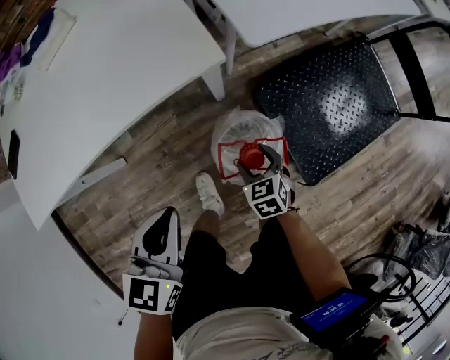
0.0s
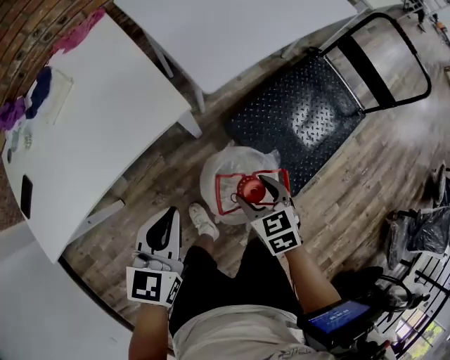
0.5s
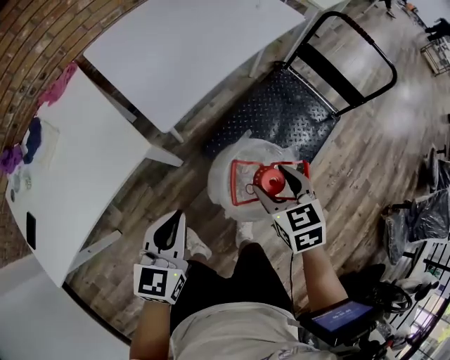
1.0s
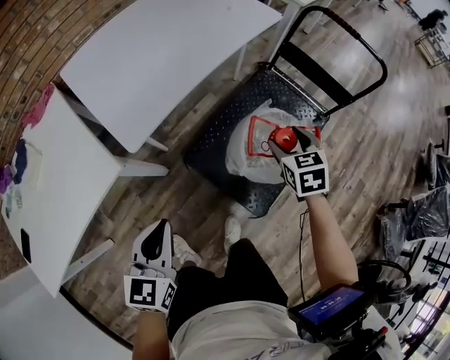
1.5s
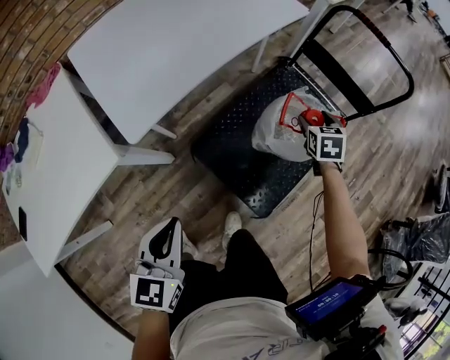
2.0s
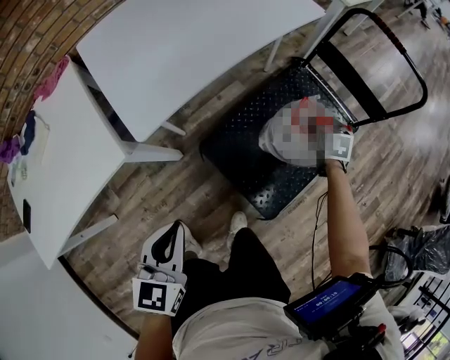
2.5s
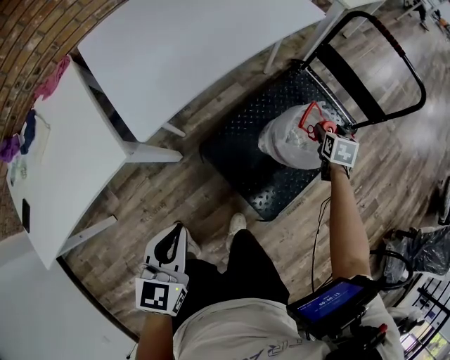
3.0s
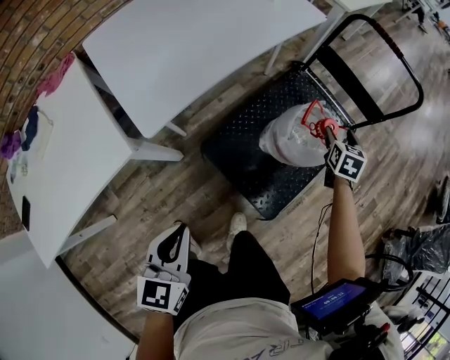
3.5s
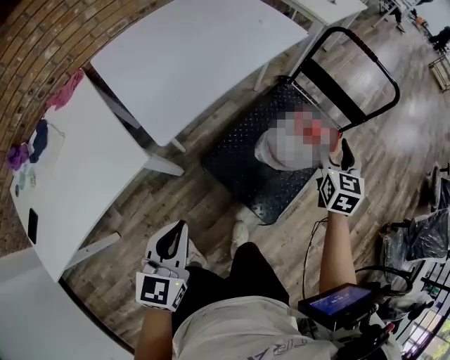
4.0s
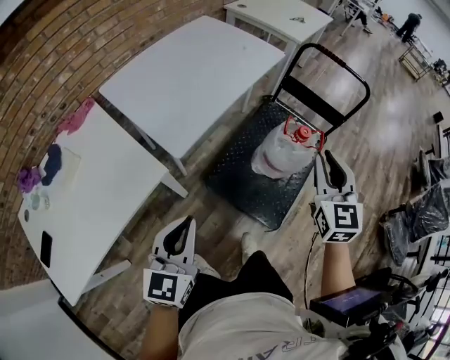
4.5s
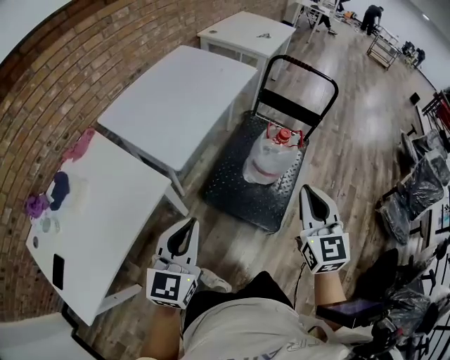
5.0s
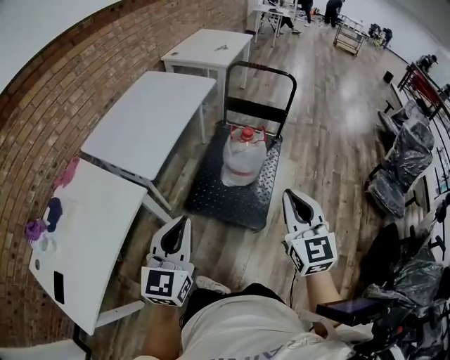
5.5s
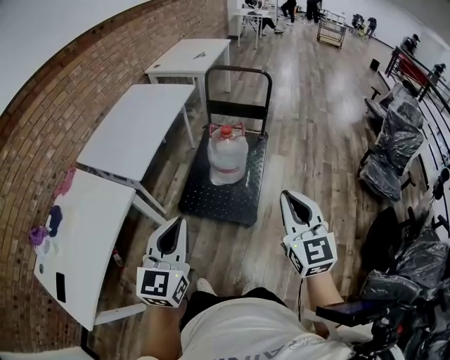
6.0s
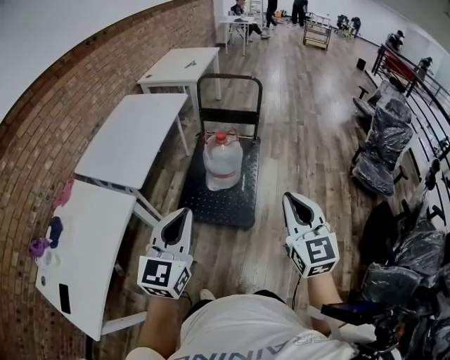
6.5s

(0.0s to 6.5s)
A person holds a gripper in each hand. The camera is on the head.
0.0s - 2.0s: The right gripper ends up approximately 60 cm from where it was, and changes its angle by roughly 40 degrees, while the left gripper shifts by about 30 cm.
2.0s - 4.5s: The right gripper travels upward and backward by roughly 40 cm, tips its fingers upward by roughly 40 degrees, and closes up; the left gripper heads upward, to the left and backward, covering roughly 15 cm, and turns by about 20 degrees.
4.5s - 6.5s: The right gripper is displaced backward and to the right by approximately 40 cm; the left gripper is displaced to the right, upward and backward by some 25 cm, and turns by approximately 30 degrees.

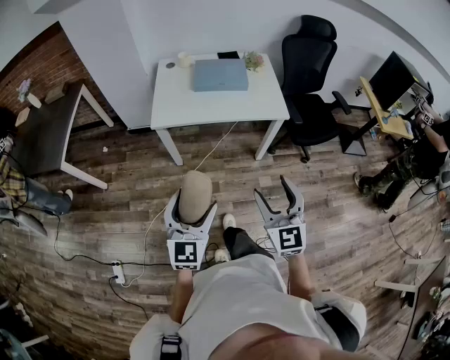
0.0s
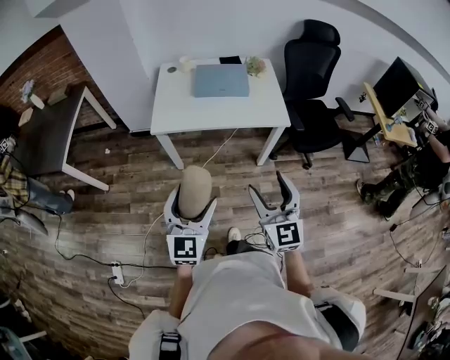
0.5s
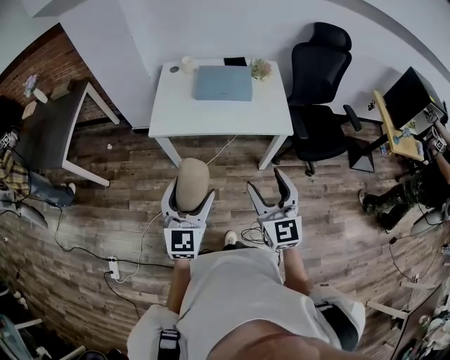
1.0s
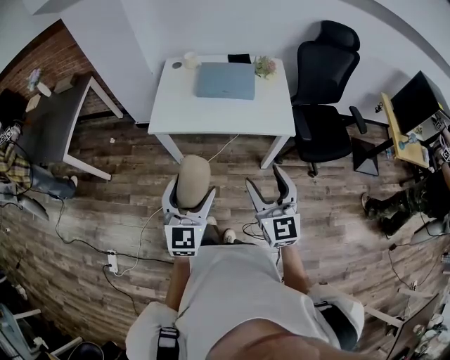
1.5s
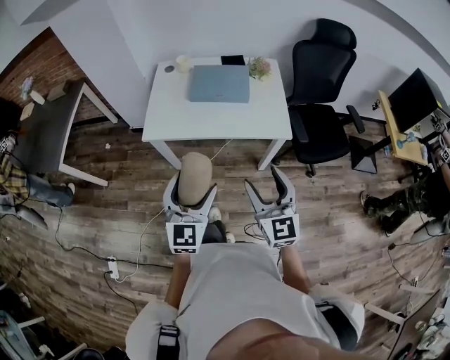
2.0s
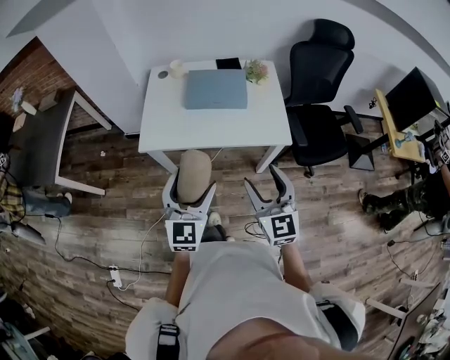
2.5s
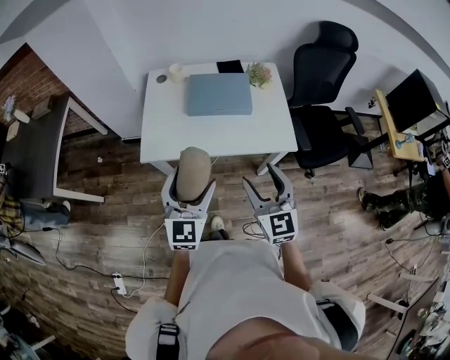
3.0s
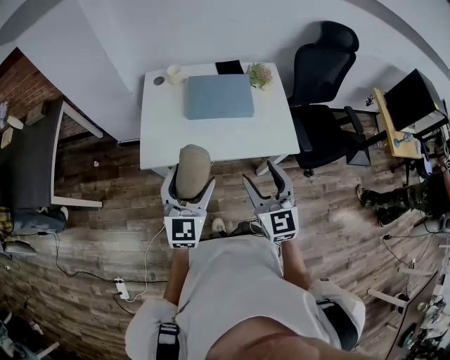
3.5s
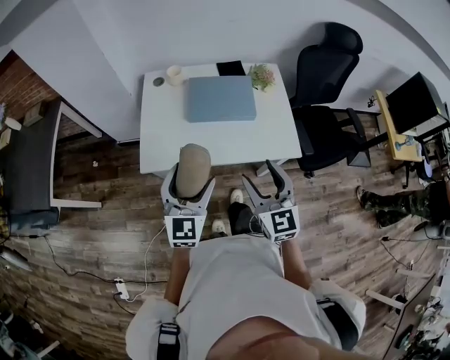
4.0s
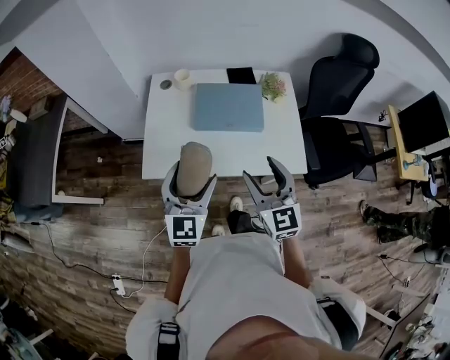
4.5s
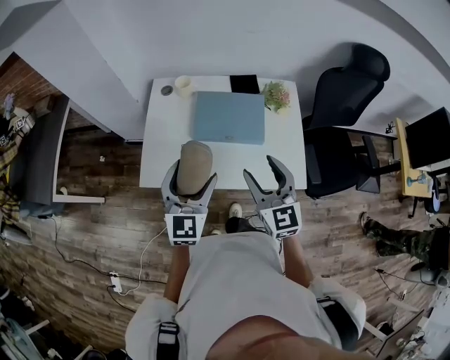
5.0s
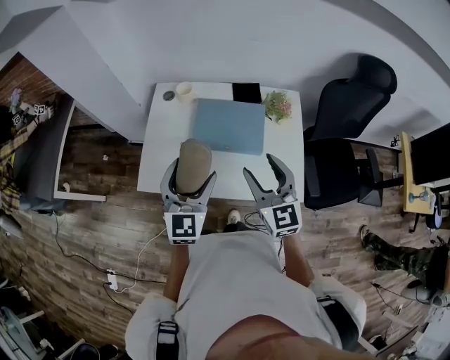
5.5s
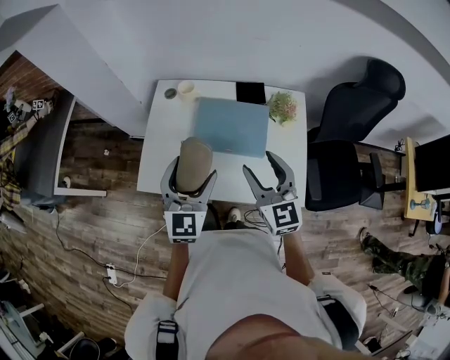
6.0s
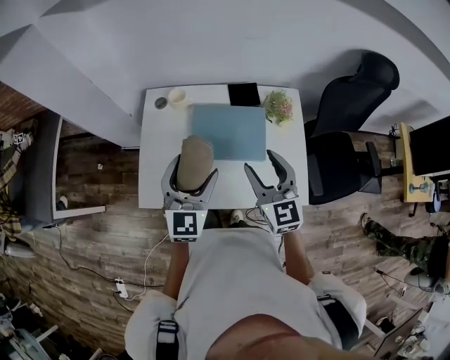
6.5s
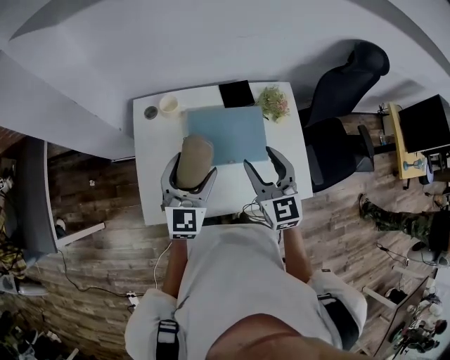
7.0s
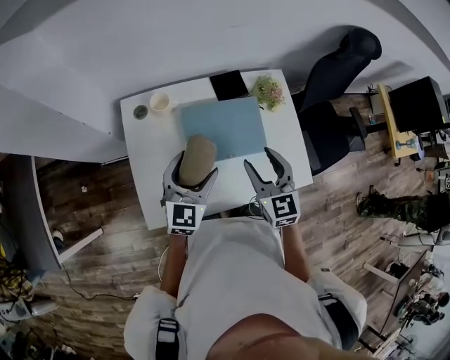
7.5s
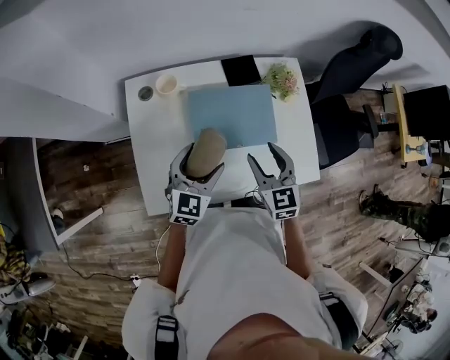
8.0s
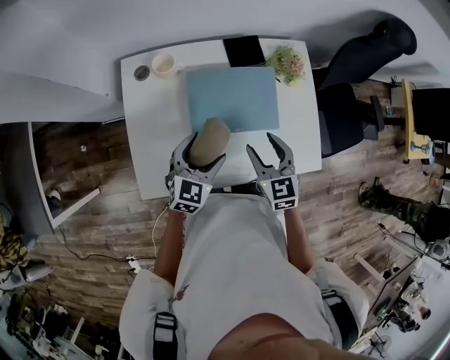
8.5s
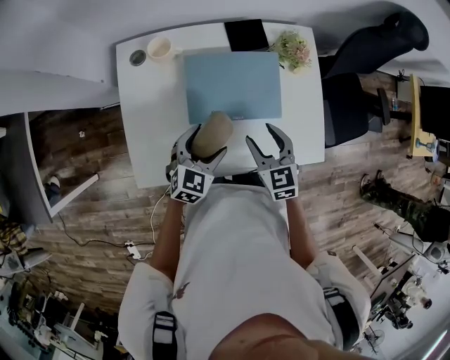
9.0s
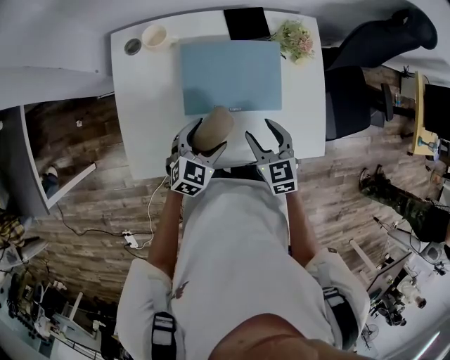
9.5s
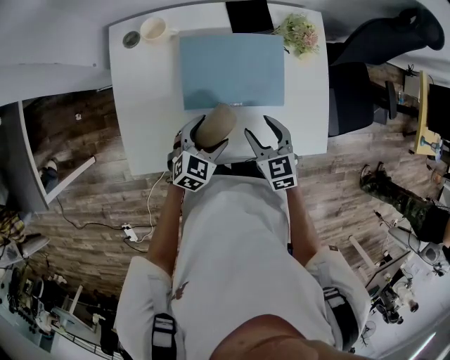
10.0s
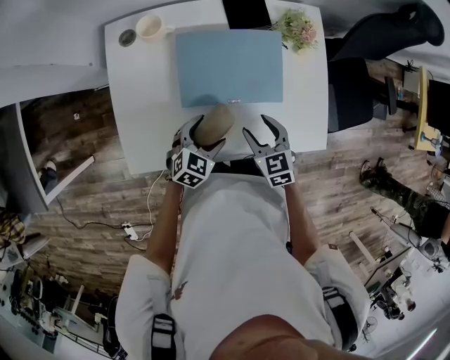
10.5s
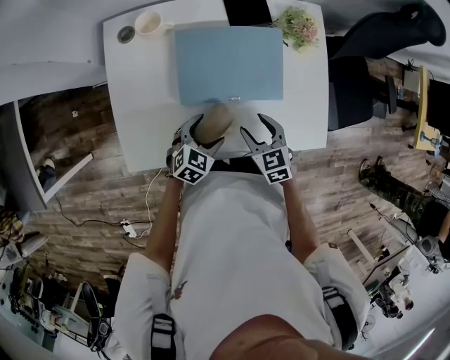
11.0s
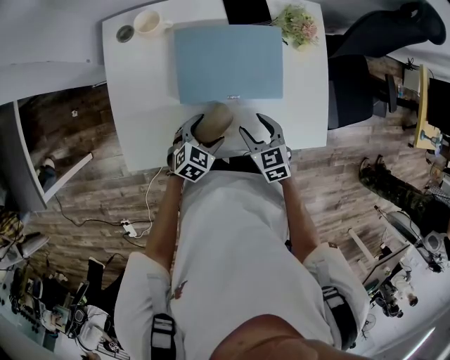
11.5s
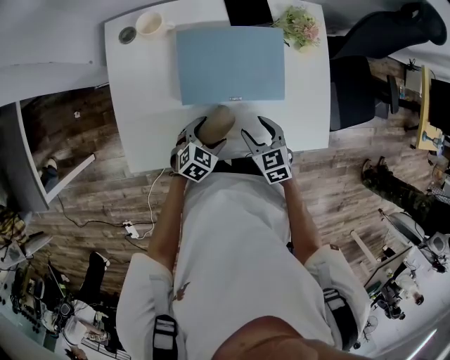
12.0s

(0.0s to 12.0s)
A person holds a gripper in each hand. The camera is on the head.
0.0s - 2.0s: The grippers both shift forward and to the right by approximately 20 cm.
2.0s - 4.0s: The right gripper moves forward and to the left, about 20 cm. The left gripper travels forward by about 20 cm.
4.0s - 6.0s: Both grippers travel together forward, roughly 20 cm.
6.0s - 8.0s: The right gripper is displaced downward, forward and to the left by approximately 15 cm, and rotates some 20 degrees; the left gripper goes some 20 cm downward and forward, and turns by about 30 degrees.
8.0s - 10.0s: The left gripper moves downward and to the right, some 15 cm, and swivels about 20 degrees. Meanwhile the right gripper is displaced downward by about 15 cm.
10.0s - 12.0s: Both grippers move downward, approximately 5 cm.

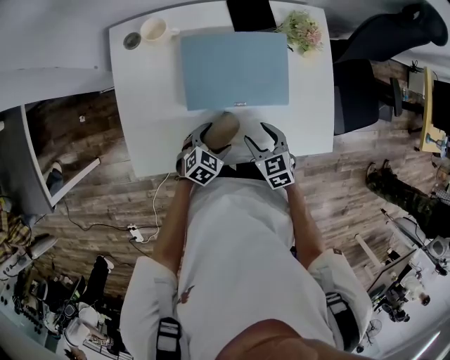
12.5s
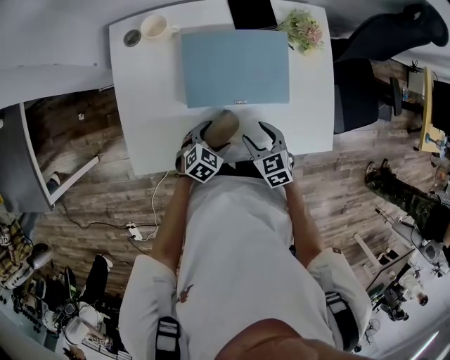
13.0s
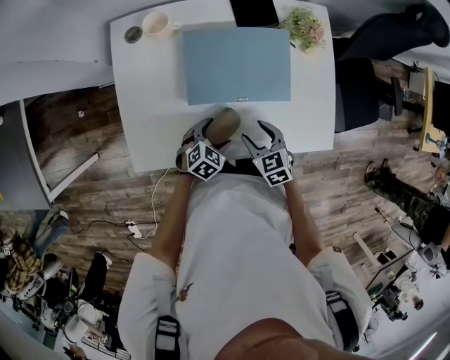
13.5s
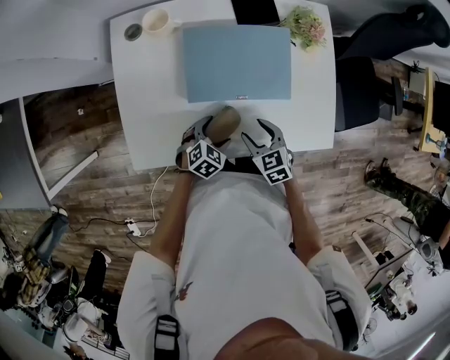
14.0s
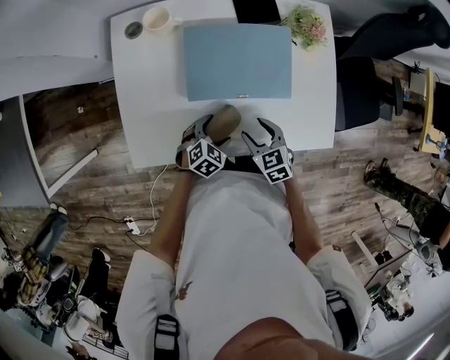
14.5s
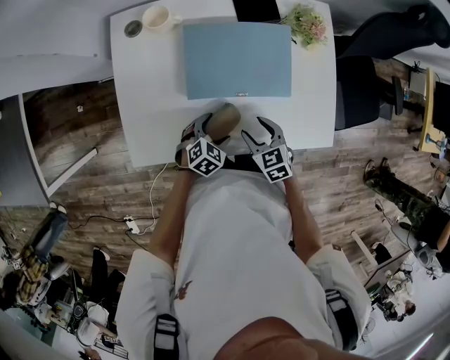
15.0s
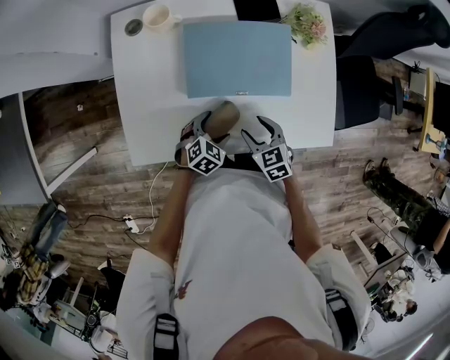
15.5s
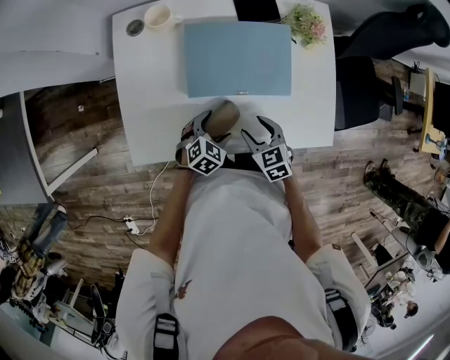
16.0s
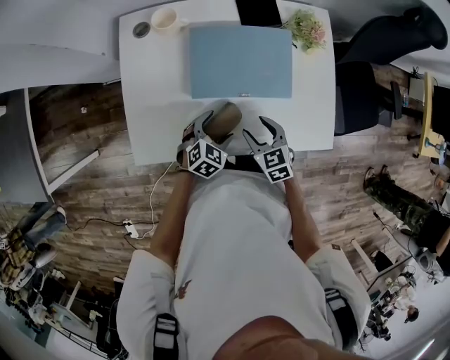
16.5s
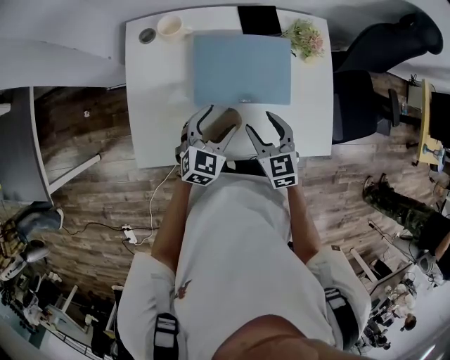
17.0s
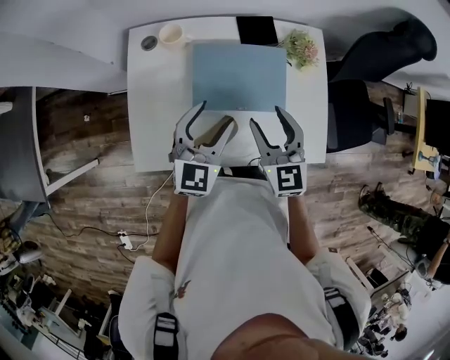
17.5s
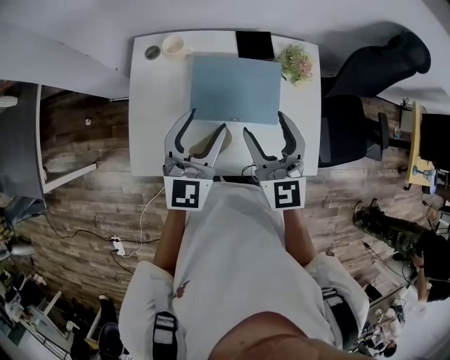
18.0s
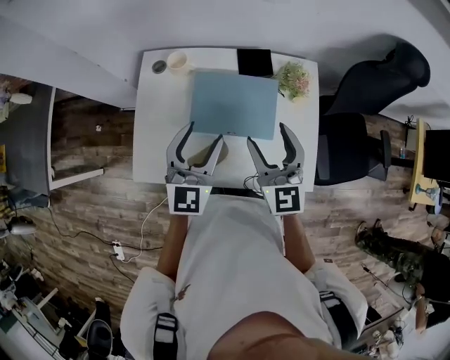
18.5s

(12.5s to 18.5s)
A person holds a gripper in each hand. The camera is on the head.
12.5s - 16.5s: The grippers stay close to where they were, moving slightly.
16.5s - 18.5s: The grippers both shift upward by some 30 cm. The right gripper tilts its fingers some 40 degrees upward. Meanwhile the left gripper angles its fingers upward, by some 40 degrees.

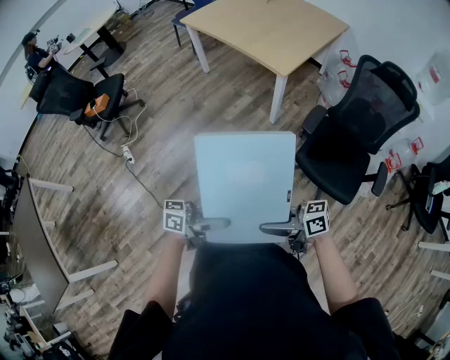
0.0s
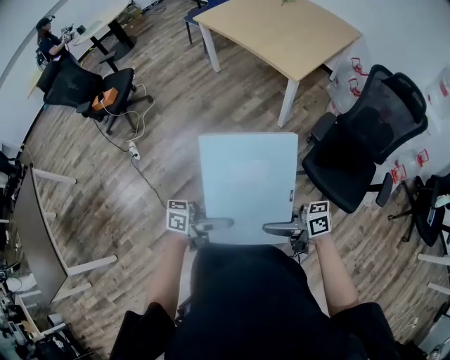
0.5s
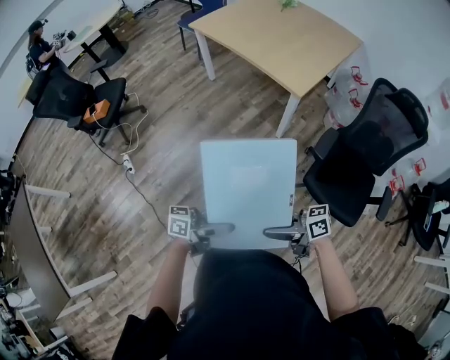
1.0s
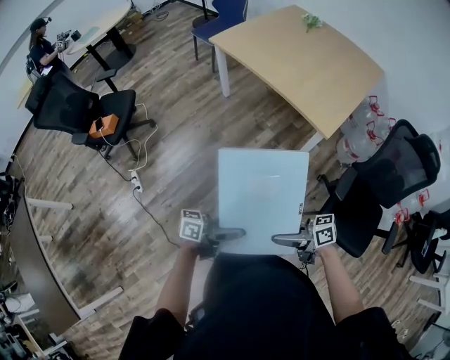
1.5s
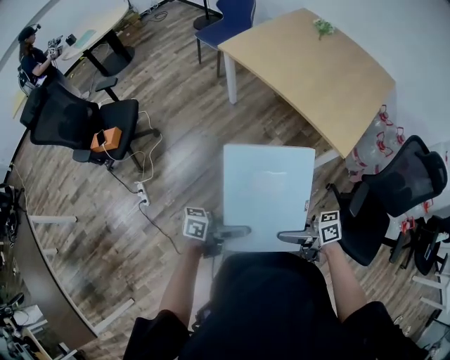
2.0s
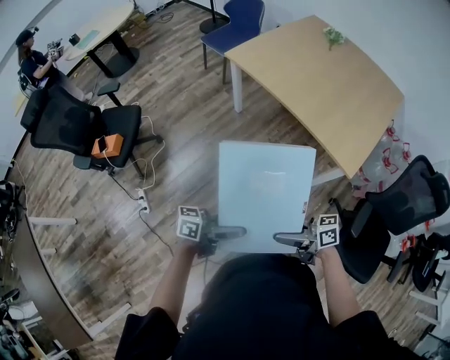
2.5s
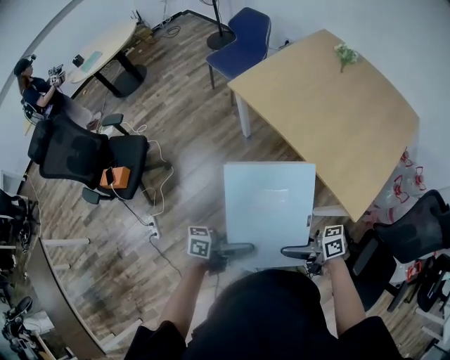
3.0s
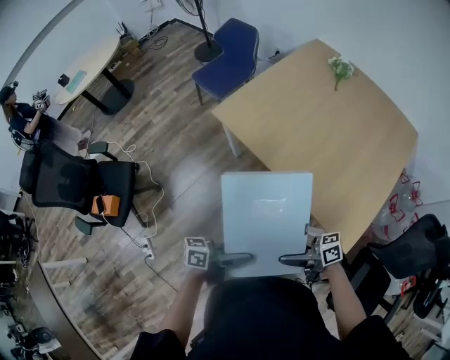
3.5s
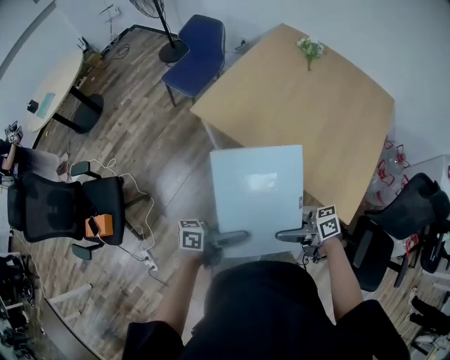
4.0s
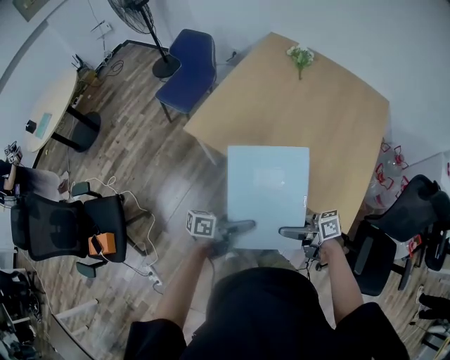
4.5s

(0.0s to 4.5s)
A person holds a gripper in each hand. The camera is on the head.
0.0s - 2.0s: Both grippers are carried some 60 cm.
2.0s - 4.5s: The pair of grippers is taken about 60 cm.
